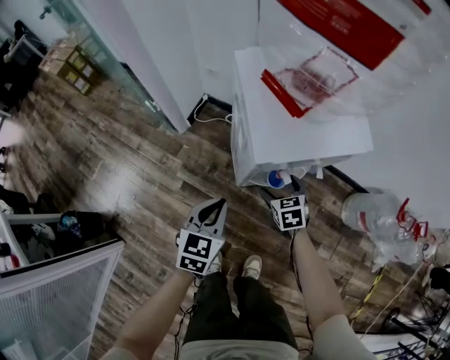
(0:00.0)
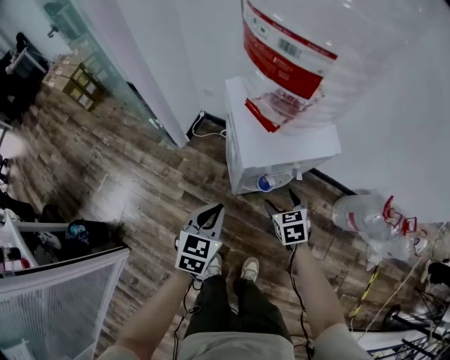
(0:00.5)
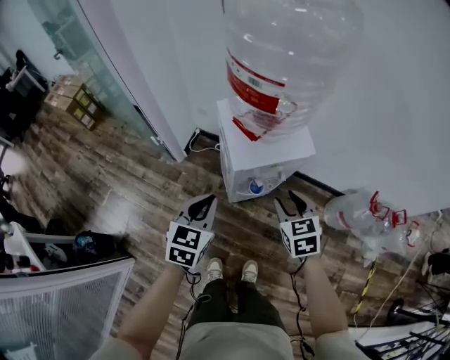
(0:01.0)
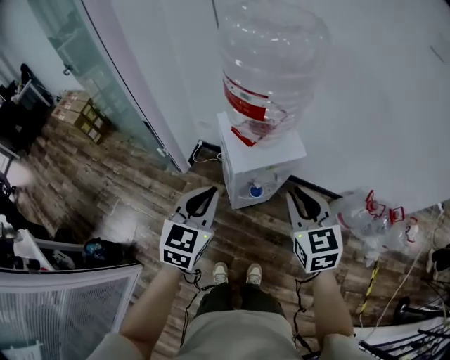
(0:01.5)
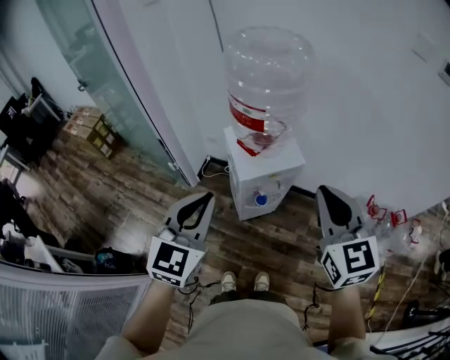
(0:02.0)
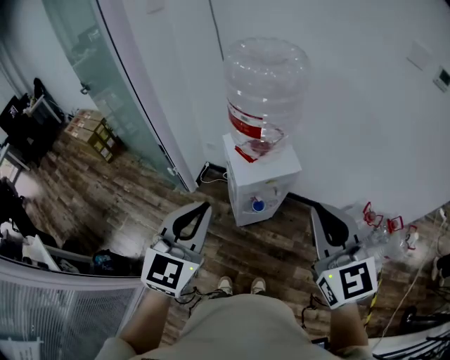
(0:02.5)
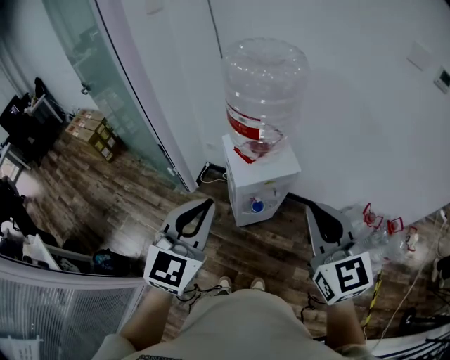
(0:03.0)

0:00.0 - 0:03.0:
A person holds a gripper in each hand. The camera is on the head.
0:00.0 - 0:01.5: The grippers both shift upward by roughly 40 cm. The right gripper rotates roughly 30 degrees, and closes.
0:01.5 - 0:03.0: Both grippers travel together upward and backward, about 20 cm.

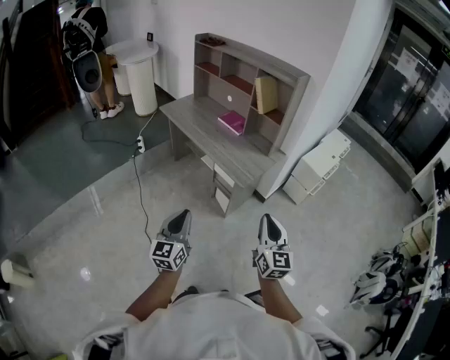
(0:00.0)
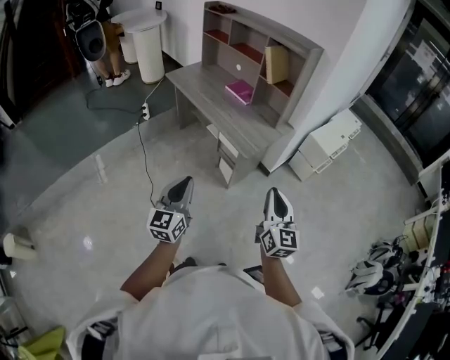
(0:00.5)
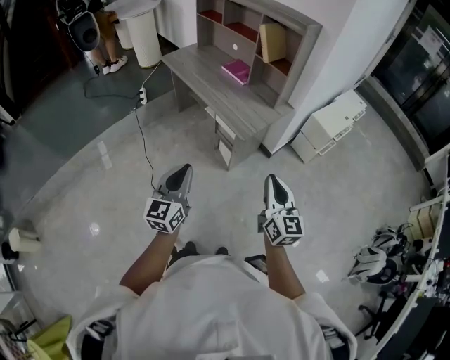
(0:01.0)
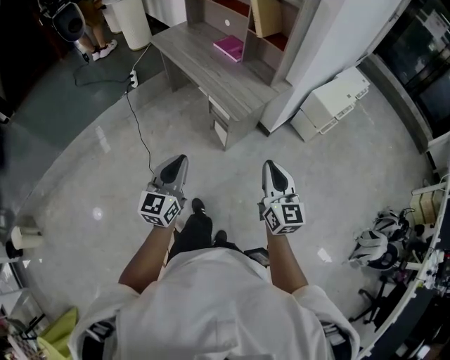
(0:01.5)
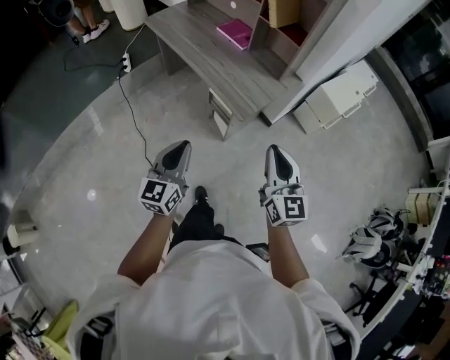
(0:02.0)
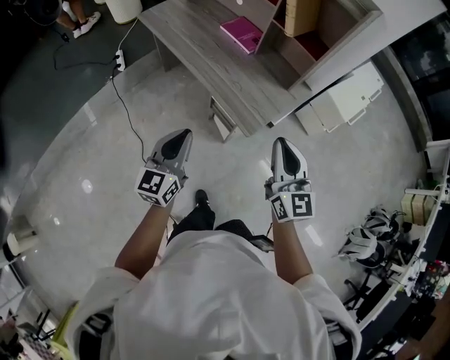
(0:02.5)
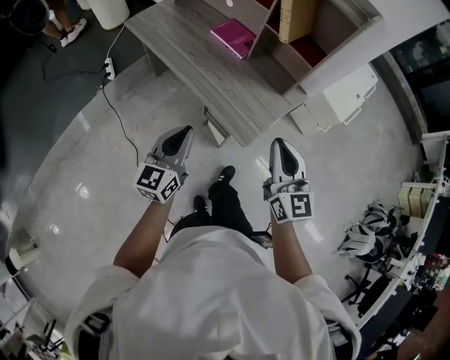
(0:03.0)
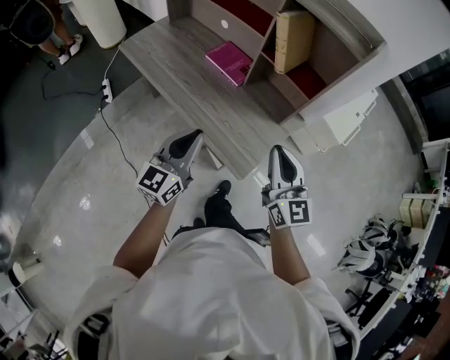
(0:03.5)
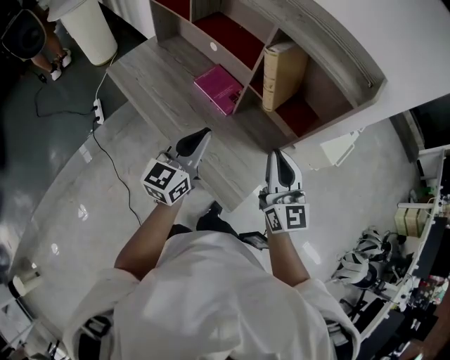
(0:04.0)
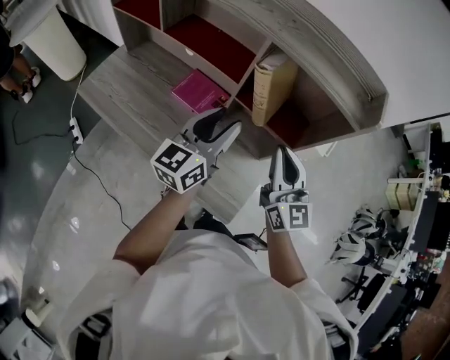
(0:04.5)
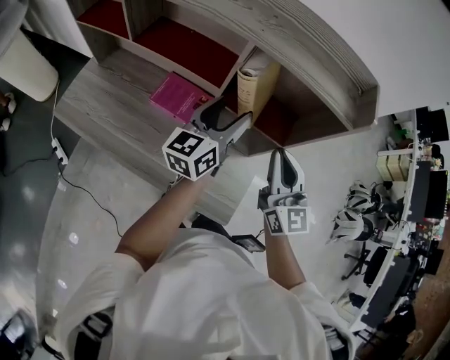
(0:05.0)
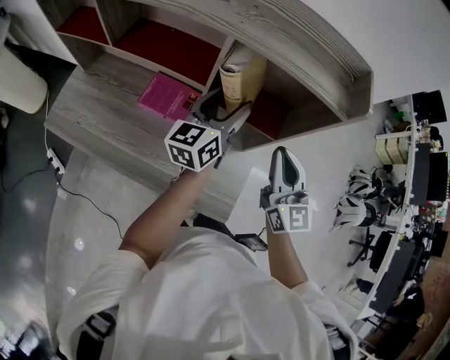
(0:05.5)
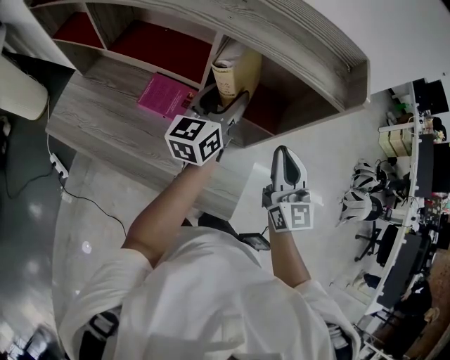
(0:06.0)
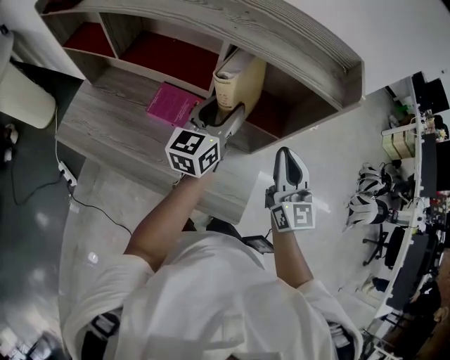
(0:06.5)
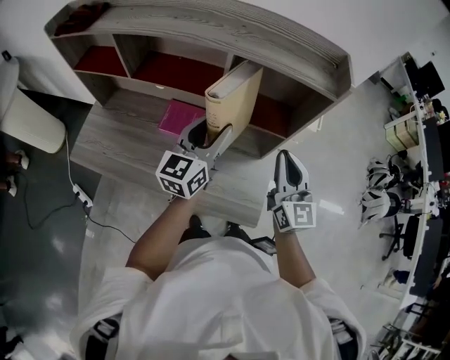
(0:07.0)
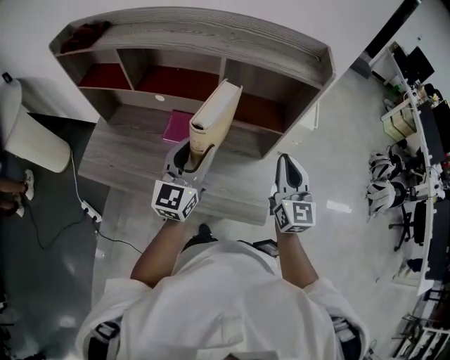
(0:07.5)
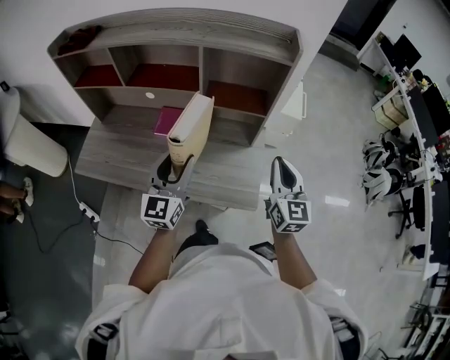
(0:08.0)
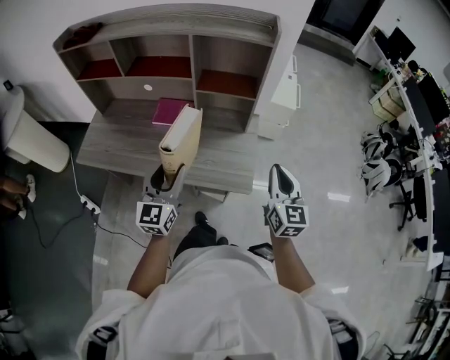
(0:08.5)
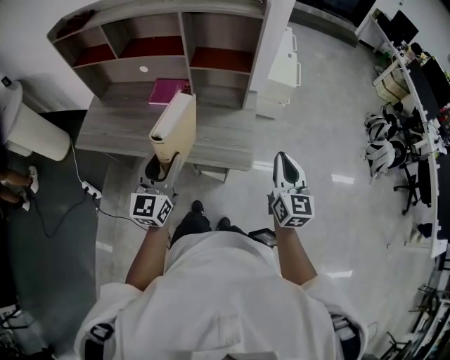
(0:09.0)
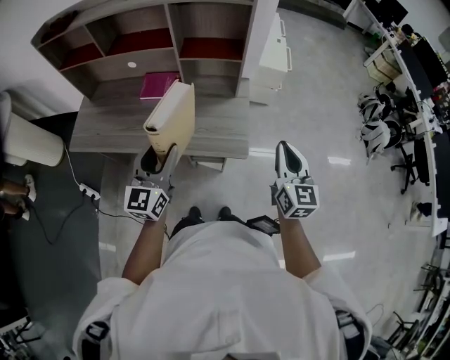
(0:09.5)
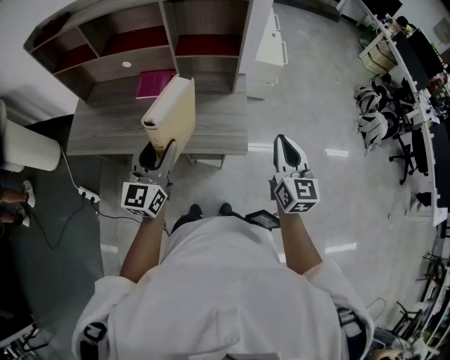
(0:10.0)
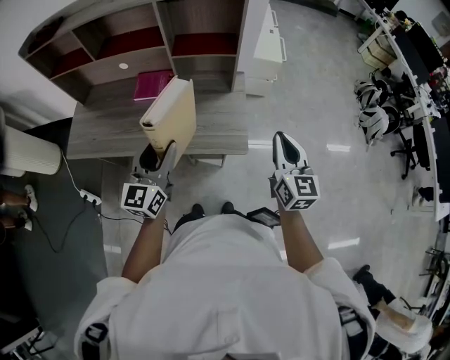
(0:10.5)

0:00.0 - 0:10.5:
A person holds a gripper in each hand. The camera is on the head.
0:00.0 - 0:02.0: The two grippers go approximately 15 cm forward.
0:02.0 - 0:04.0: The grippers both shift forward by approximately 40 cm.
0:04.0 - 0:06.5: The right gripper is displaced forward by roughly 10 cm, and swivels about 30 degrees. Meanwhile the left gripper travels forward by about 20 cm, rotates approximately 20 degrees, and opens its fingers.
0:06.5 - 0:08.5: The two grippers go approximately 30 cm backward. The left gripper rotates approximately 20 degrees.

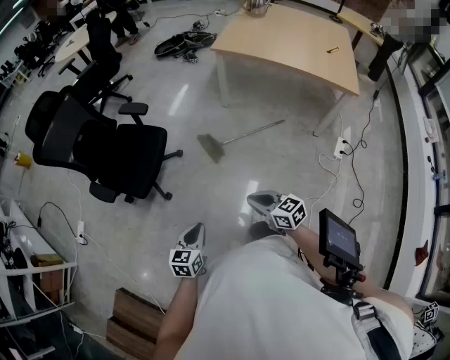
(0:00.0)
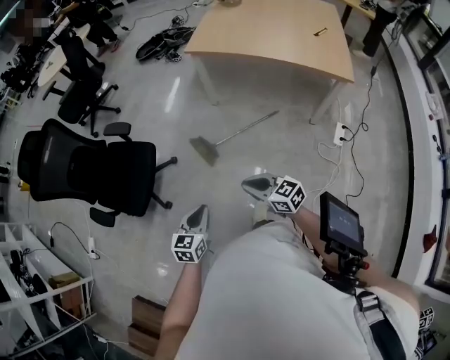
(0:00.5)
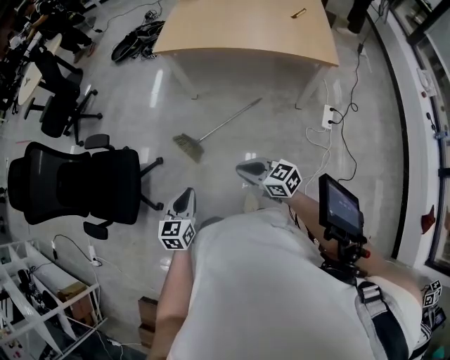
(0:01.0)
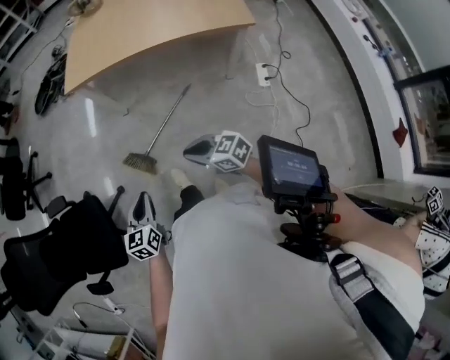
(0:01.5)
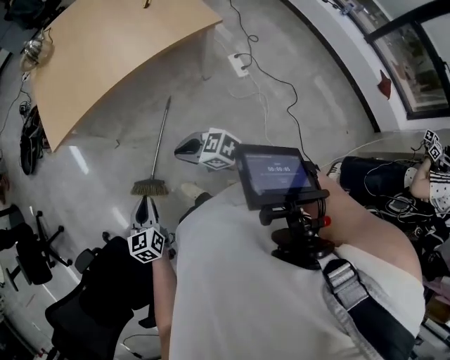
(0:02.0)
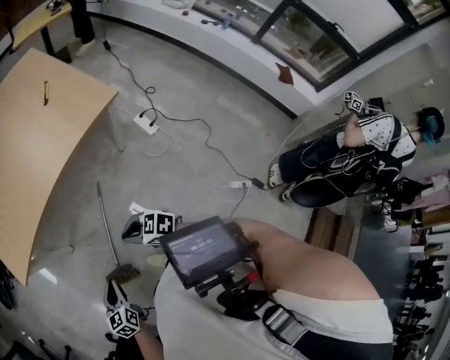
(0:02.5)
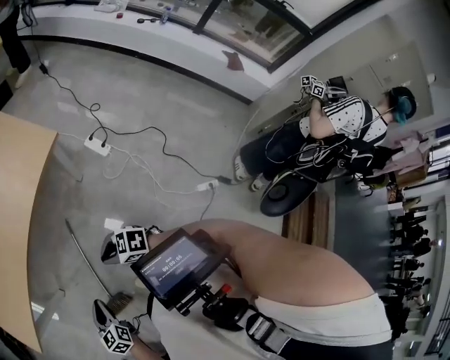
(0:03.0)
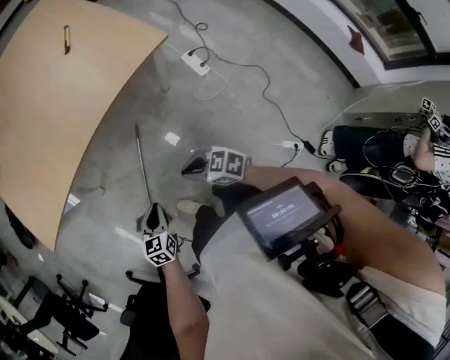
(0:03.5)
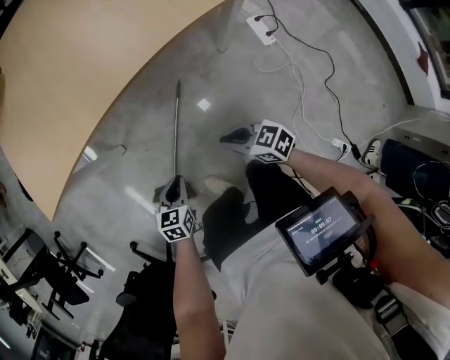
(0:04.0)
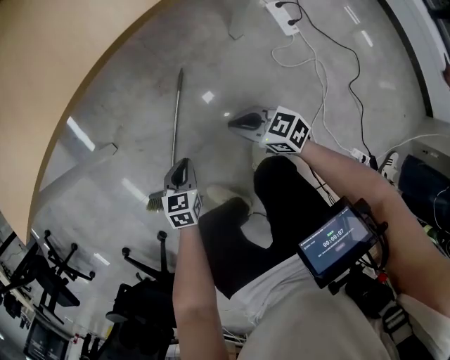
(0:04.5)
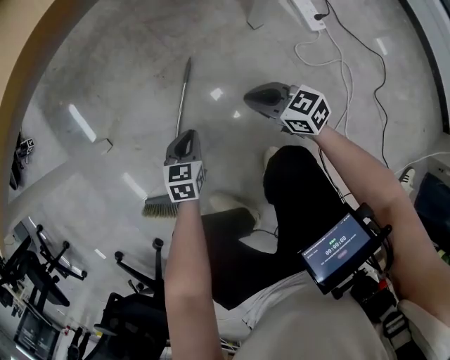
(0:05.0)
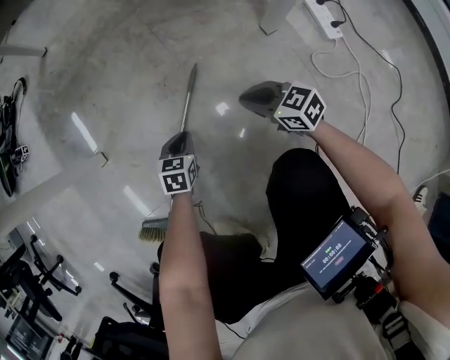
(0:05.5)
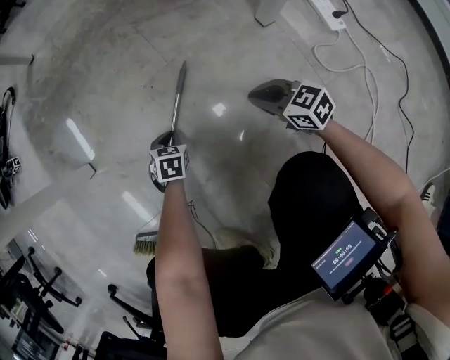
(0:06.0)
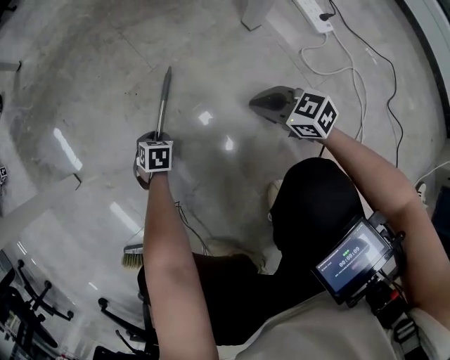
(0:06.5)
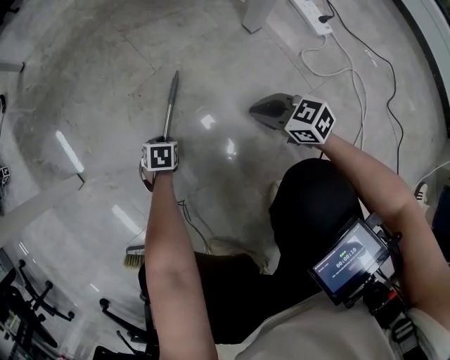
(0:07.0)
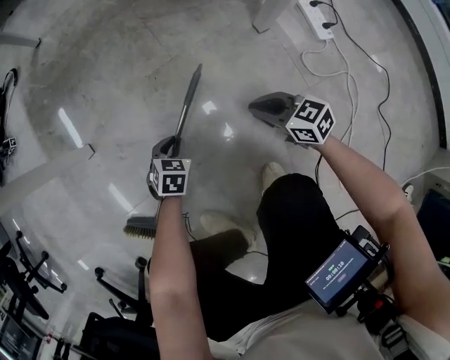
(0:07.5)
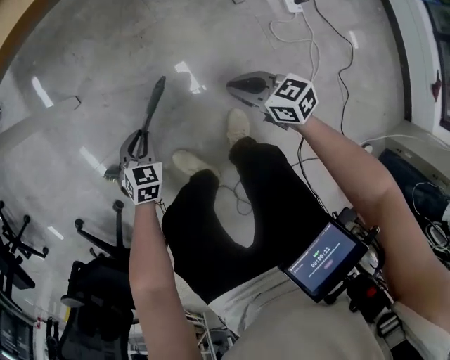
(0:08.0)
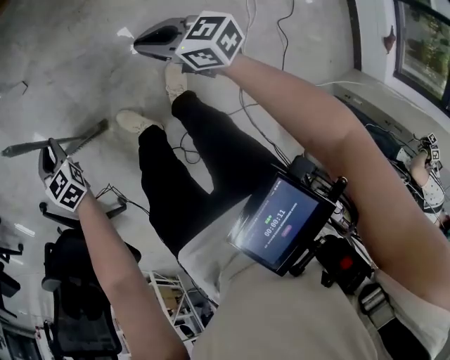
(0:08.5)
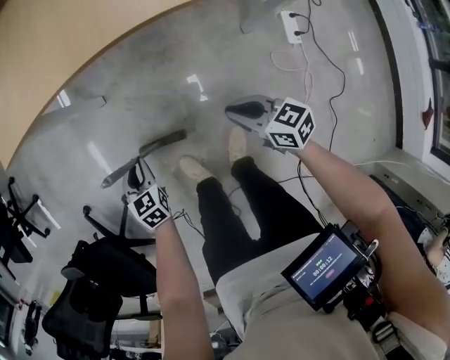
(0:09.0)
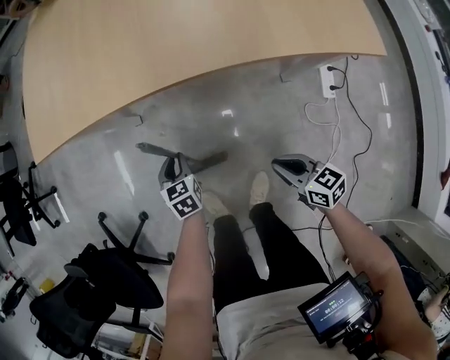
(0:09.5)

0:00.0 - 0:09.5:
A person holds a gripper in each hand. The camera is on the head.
0:00.0 - 0:02.0: Both grippers are carried some 50 cm. The left gripper turns by approximately 30 degrees. The right gripper rotates some 20 degrees.
0:02.0 - 0:04.0: The left gripper travels downward and forward by approximately 30 cm, and turns by approximately 20 degrees; the right gripper heads downward, to the right and forward, covering about 25 cm.
0:04.0 - 0:05.5: The two grippers go about 35 cm downward.
0:05.5 - 0:07.5: The right gripper reaches some 5 cm downward, then returns. Meanwhile the left gripper goes downward and returns, approximately 15 cm each way.
0:07.5 - 0:09.5: The two grippers go some 30 cm upward. The left gripper changes its angle by roughly 50 degrees.

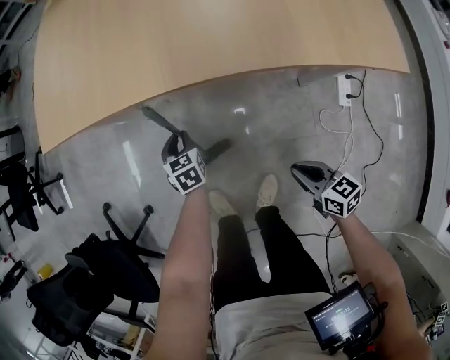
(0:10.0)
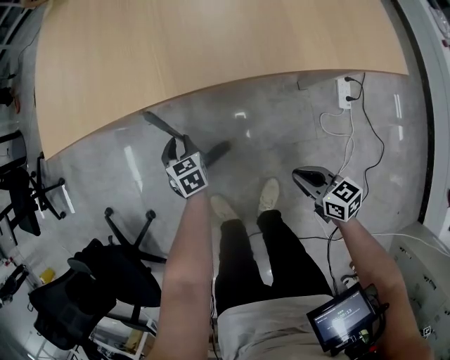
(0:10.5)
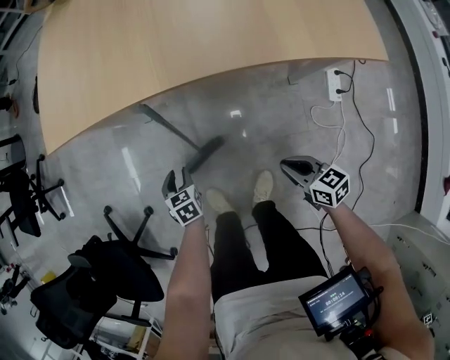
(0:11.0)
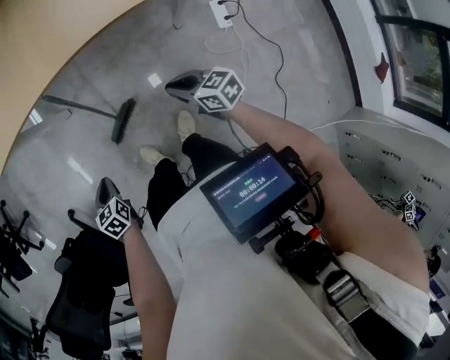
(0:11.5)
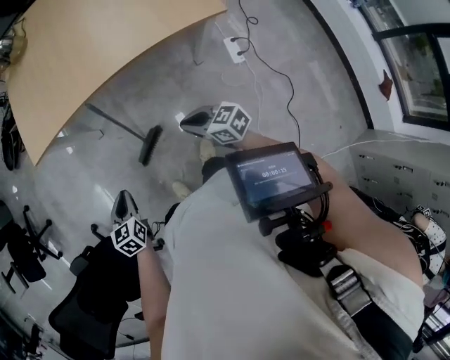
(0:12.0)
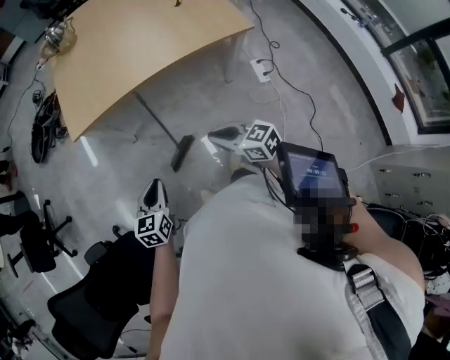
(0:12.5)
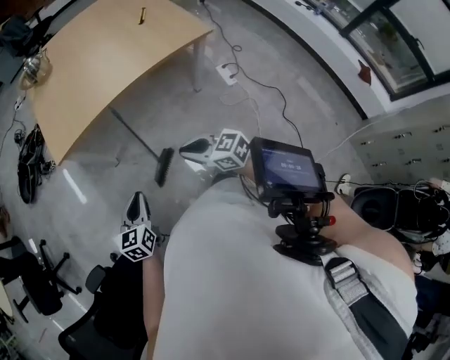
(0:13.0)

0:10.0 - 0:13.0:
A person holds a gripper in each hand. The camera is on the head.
0:10.0 - 0:11.5: The left gripper travels backward, to the left and upward by approximately 30 cm. The right gripper goes approximately 10 cm upward.
0:11.5 - 0:13.0: The left gripper goes roughly 20 cm upward, and angles its fingers upward, by roughly 30 degrees. The right gripper goes some 30 cm to the left, upward and backward.
